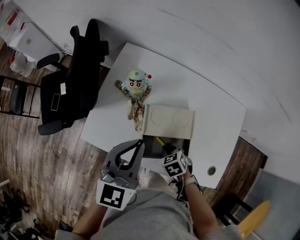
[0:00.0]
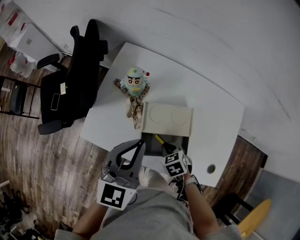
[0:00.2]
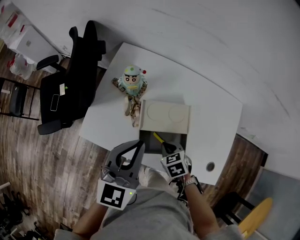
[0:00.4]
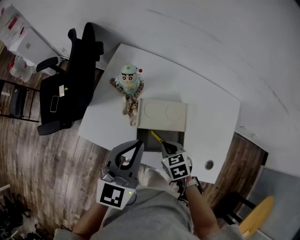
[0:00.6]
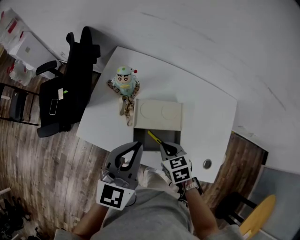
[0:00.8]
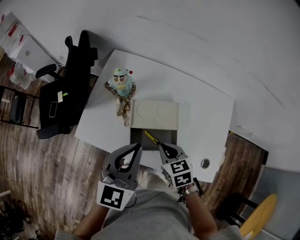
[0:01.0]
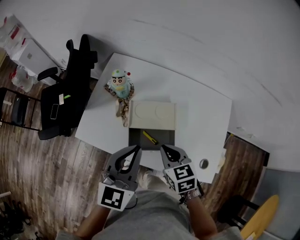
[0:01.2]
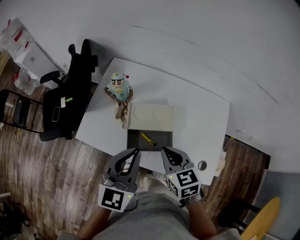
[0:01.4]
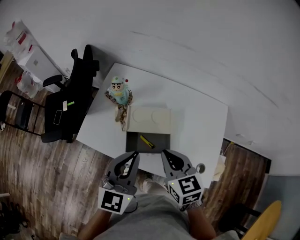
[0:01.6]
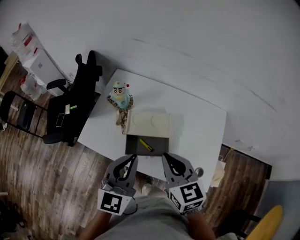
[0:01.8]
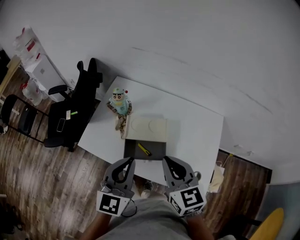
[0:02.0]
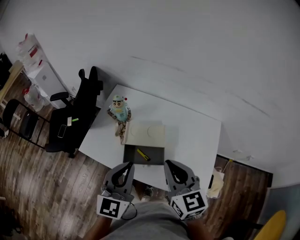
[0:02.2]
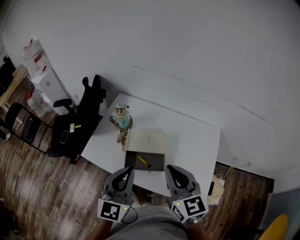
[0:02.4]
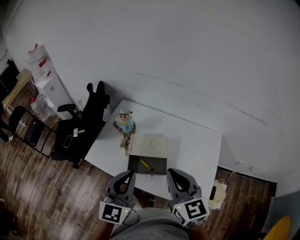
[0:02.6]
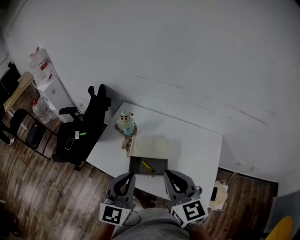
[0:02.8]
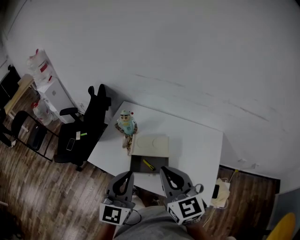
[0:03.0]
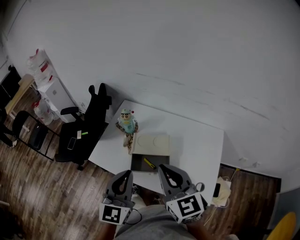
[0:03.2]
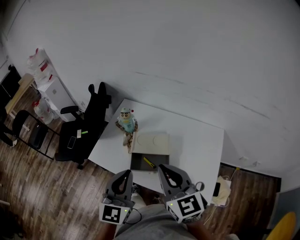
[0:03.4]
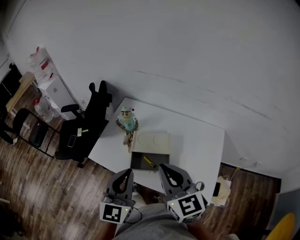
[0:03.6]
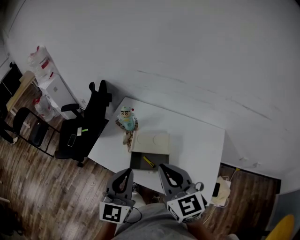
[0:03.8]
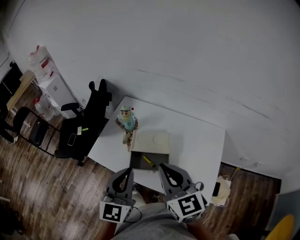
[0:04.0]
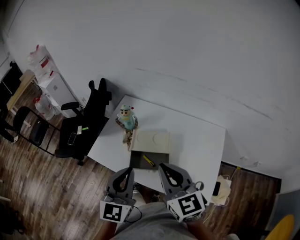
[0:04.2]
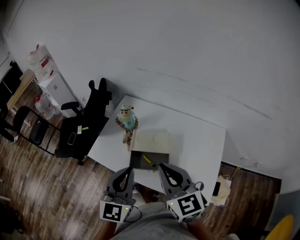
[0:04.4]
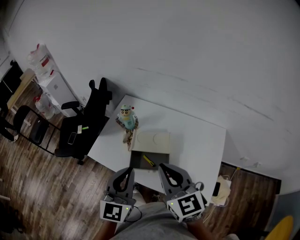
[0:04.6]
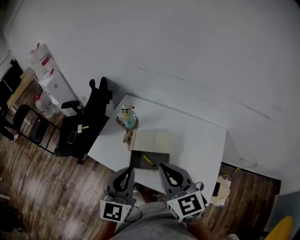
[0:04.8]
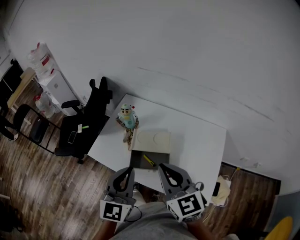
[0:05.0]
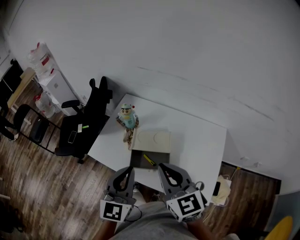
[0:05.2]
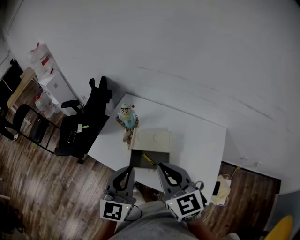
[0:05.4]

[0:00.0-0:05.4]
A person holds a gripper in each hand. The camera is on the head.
0:00.0 to 0:01.4: The left gripper is displaced backward and to the right by roughly 10 cm. Meanwhile the right gripper is displaced upward by approximately 20 cm, and tips its fingers upward by about 30 degrees.
0:01.4 to 0:02.8: The left gripper travels backward and upward by roughly 10 cm; the right gripper shifts approximately 20 cm upward, and swivels some 30 degrees.
0:02.8 to 0:04.0: The grippers make only small movements.
0:04.0 to 0:05.4: Both grippers stay put.

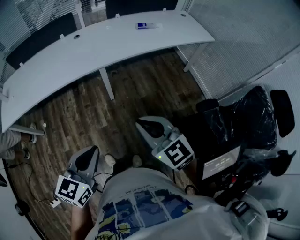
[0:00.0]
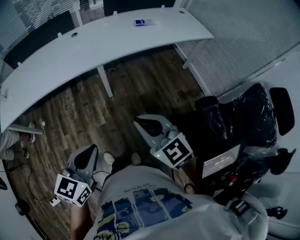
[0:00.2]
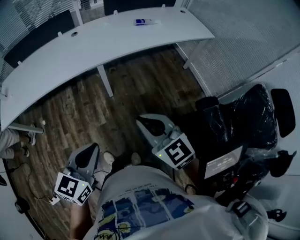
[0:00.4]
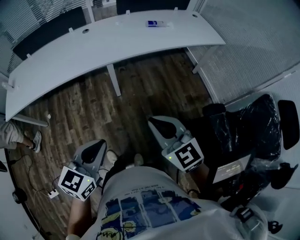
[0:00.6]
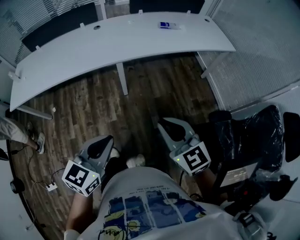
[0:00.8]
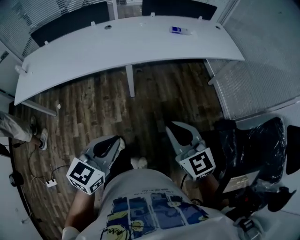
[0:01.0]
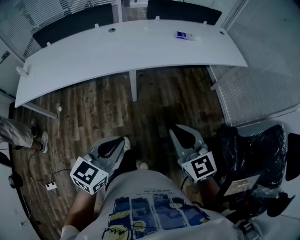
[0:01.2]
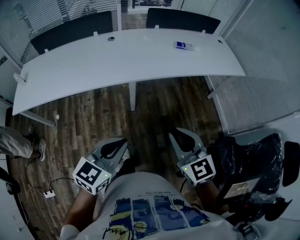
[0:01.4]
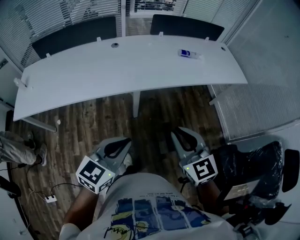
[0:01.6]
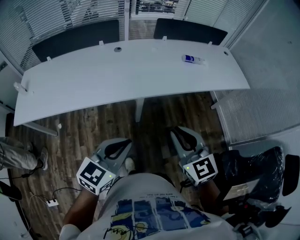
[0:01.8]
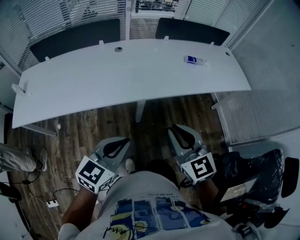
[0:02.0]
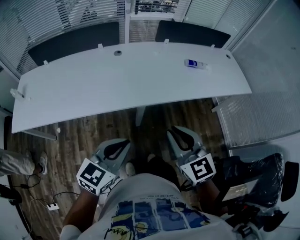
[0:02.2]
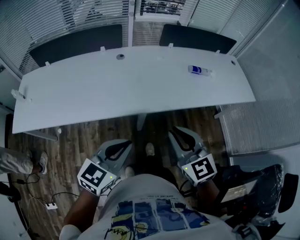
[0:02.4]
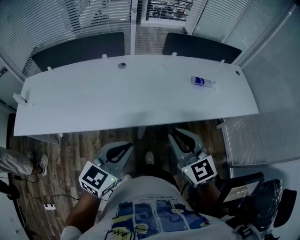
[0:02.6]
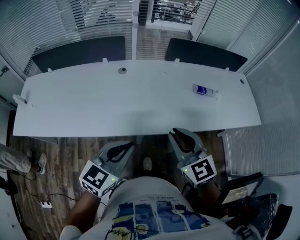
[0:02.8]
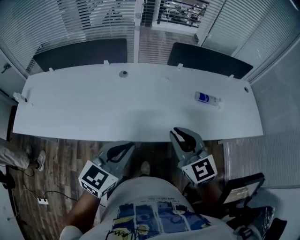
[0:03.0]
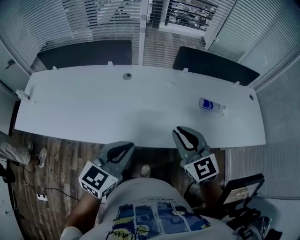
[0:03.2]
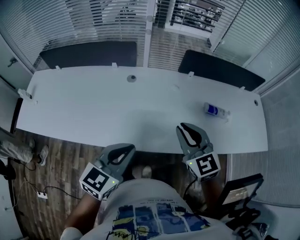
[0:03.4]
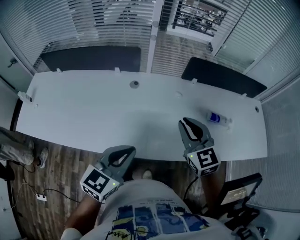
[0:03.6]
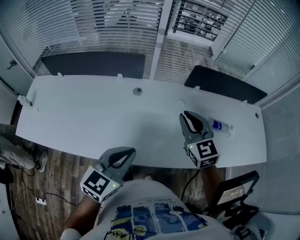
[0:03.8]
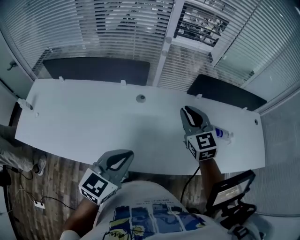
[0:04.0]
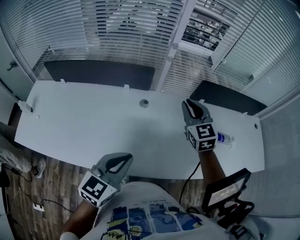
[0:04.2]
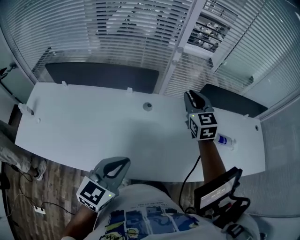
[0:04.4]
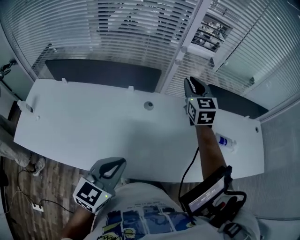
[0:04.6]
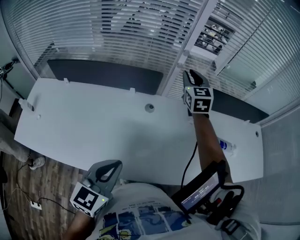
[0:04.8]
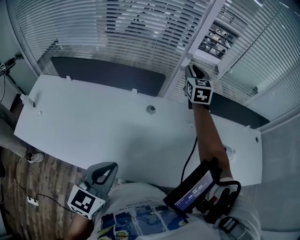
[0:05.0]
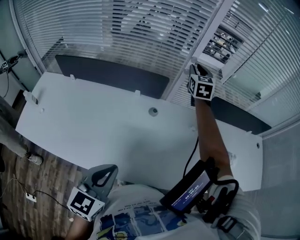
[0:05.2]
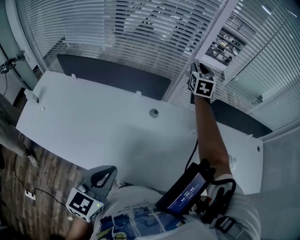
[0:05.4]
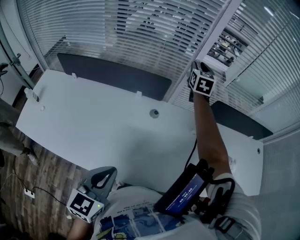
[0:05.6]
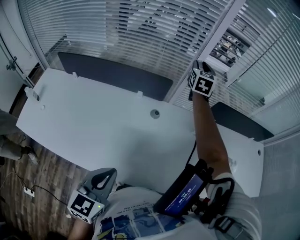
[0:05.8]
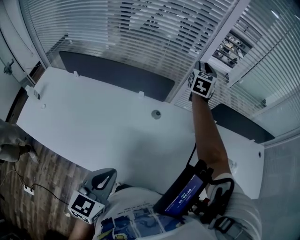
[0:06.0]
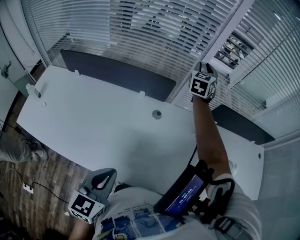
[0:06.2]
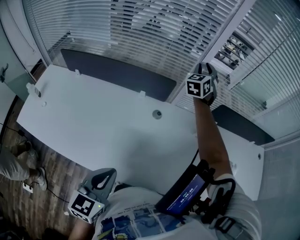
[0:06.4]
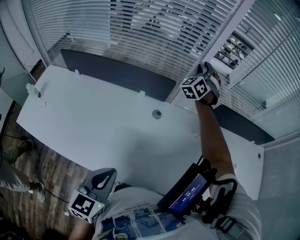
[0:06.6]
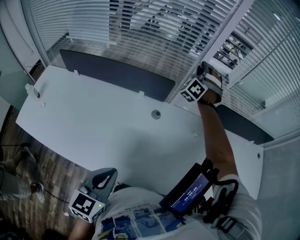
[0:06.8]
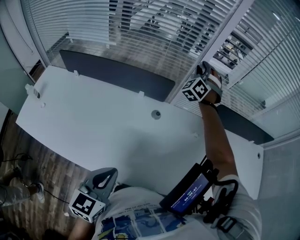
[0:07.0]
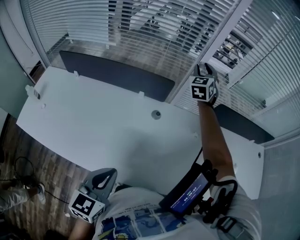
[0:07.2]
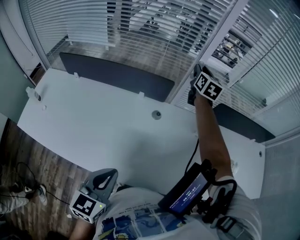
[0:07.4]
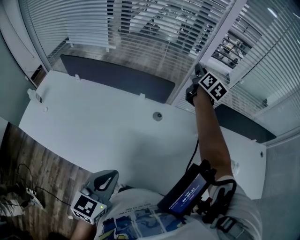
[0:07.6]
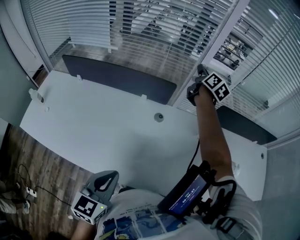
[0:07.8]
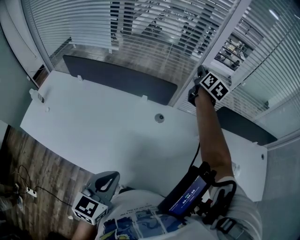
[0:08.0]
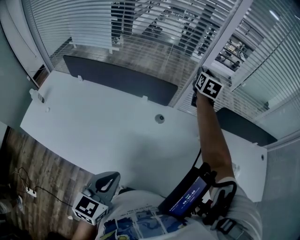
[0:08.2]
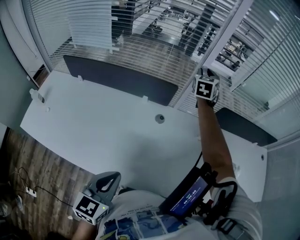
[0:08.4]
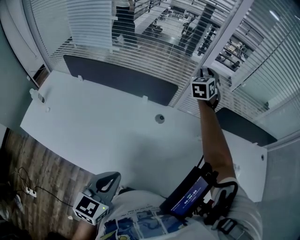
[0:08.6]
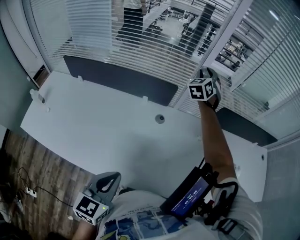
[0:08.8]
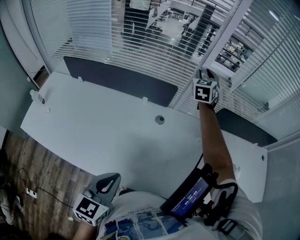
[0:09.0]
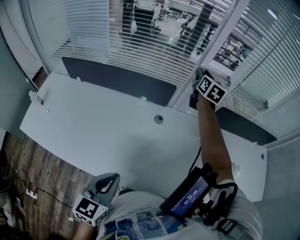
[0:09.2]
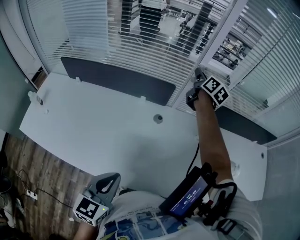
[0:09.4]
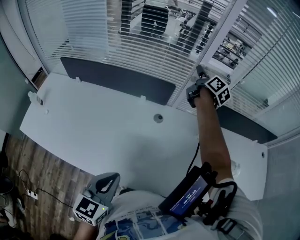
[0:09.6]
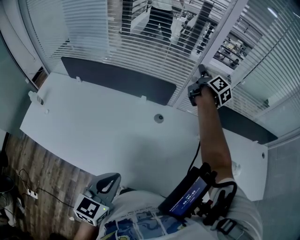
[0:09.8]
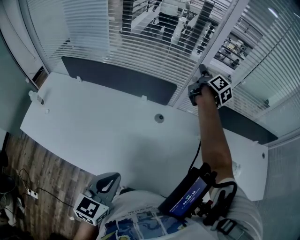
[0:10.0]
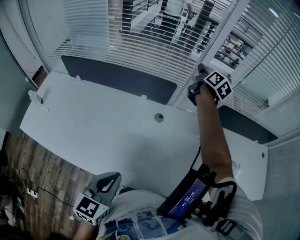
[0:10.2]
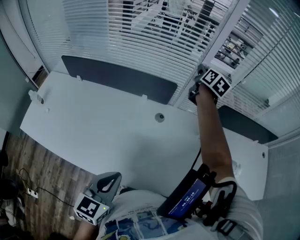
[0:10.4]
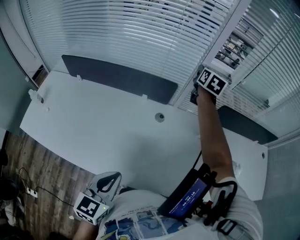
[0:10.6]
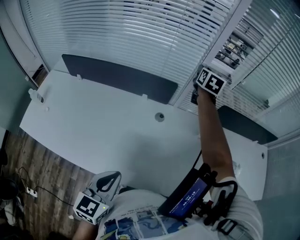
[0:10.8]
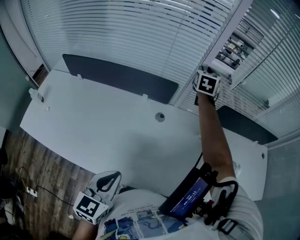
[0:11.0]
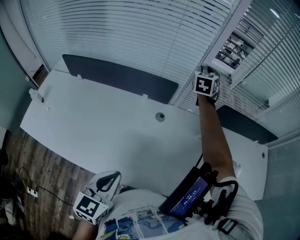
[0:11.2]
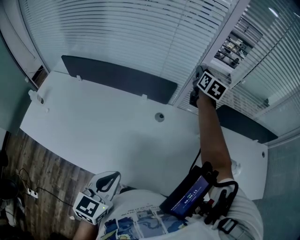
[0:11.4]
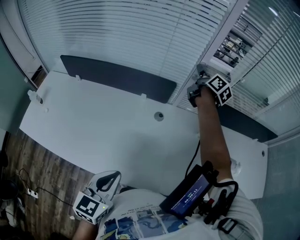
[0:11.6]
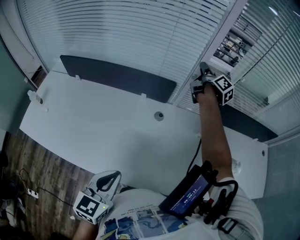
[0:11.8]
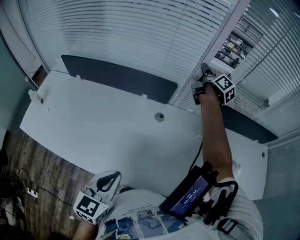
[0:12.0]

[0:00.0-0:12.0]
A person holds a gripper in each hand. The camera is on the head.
0:00.0 to 0:01.6: The grippers both shift forward by roughly 15 cm.
0:01.6 to 0:03.0: Both grippers move forward, some 30 cm.
0:03.0 to 0:04.4: The right gripper moves forward and to the left, some 40 cm, while the left gripper heads to the left and forward, covering some 20 cm.
0:04.4 to 0:06.0: The right gripper moves forward, some 20 cm.
0:06.0 to 0:07.6: The right gripper turns by about 40 degrees.
0:07.6 to 0:09.0: The right gripper rolls counterclockwise, seen from behind, by some 50 degrees.
0:09.0 to 0:10.4: The right gripper rotates around the line of its fingers by some 50 degrees, clockwise from behind.
0:10.4 to 0:12.0: The right gripper turns by some 30 degrees.

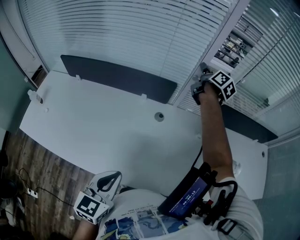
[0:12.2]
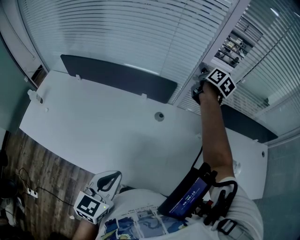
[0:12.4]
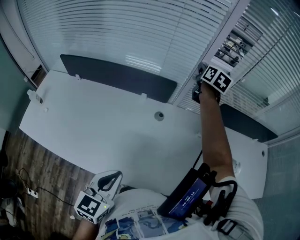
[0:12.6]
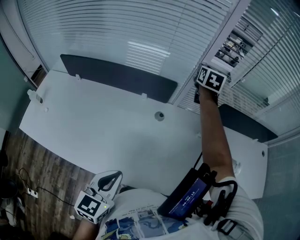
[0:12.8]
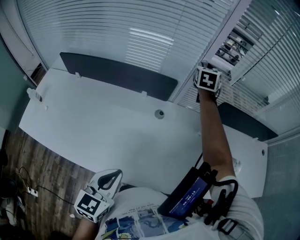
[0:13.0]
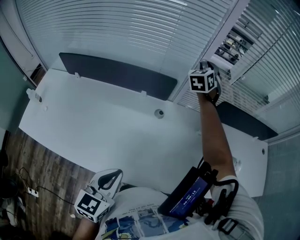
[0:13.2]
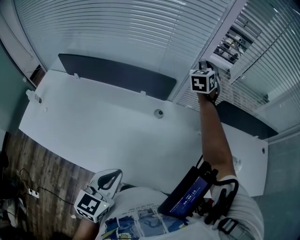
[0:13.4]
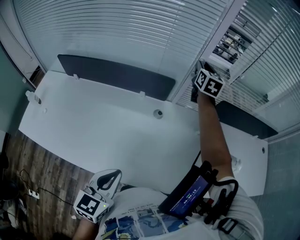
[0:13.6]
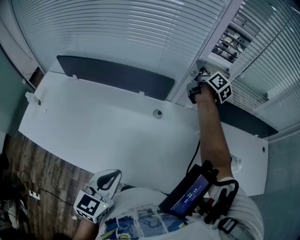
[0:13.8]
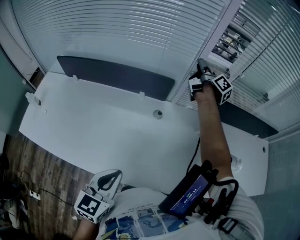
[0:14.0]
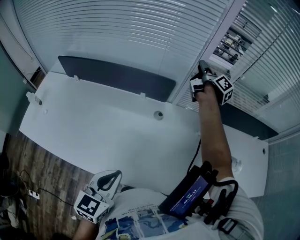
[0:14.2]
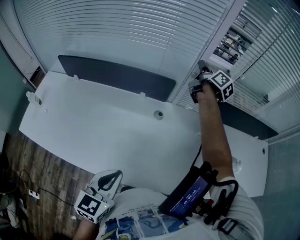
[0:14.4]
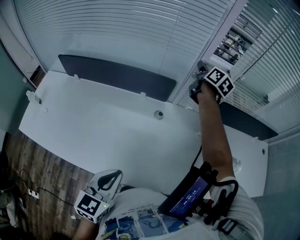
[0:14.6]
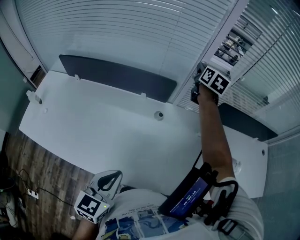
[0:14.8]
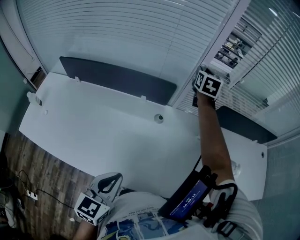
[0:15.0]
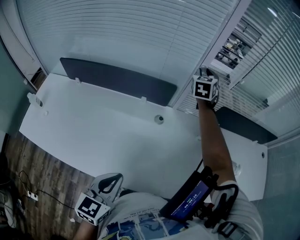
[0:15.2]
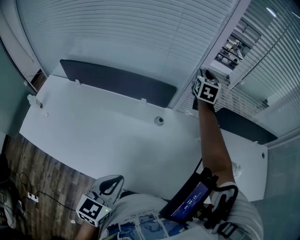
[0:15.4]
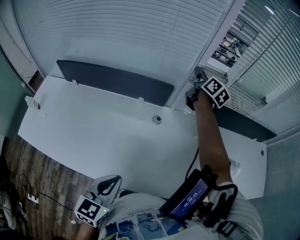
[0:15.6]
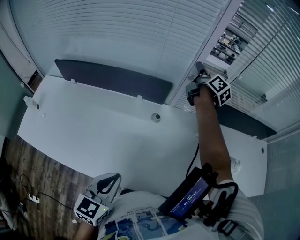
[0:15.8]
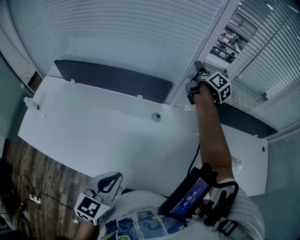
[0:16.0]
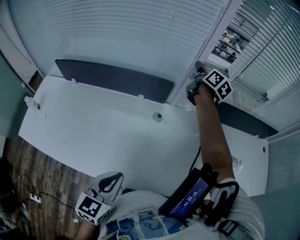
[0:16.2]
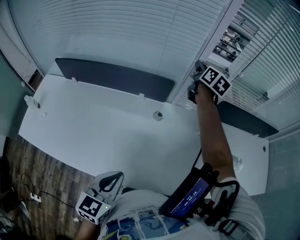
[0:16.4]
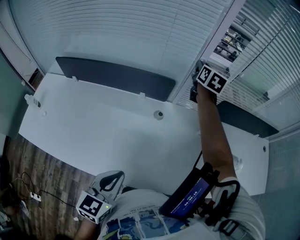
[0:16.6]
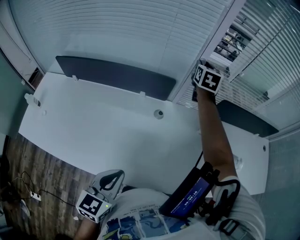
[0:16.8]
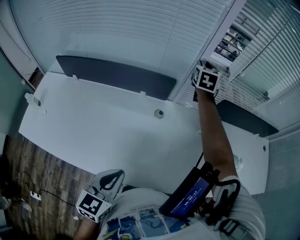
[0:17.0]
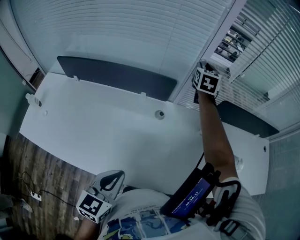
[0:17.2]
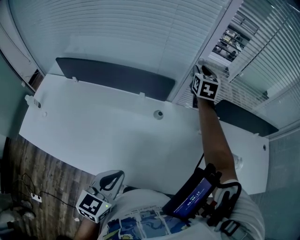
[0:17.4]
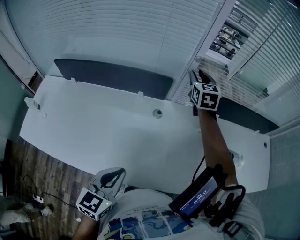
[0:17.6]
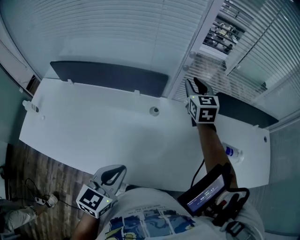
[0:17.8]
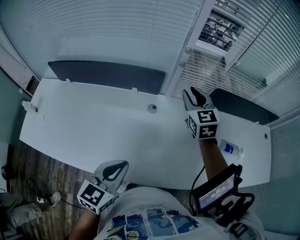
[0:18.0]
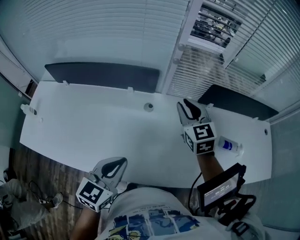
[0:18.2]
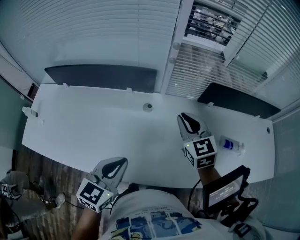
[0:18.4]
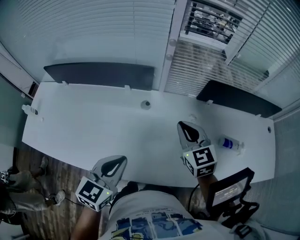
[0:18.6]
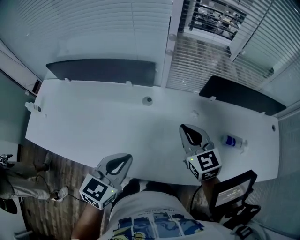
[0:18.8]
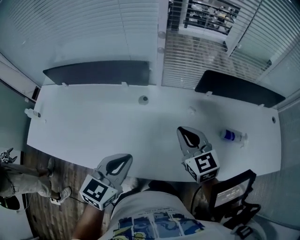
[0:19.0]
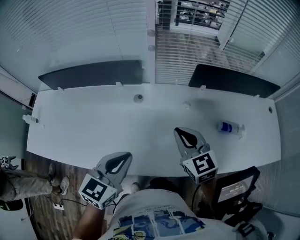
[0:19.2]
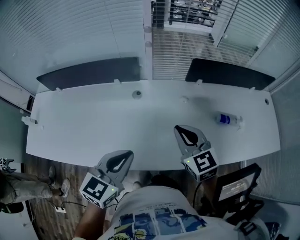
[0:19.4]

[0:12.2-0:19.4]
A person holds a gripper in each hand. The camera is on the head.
0:12.2 to 0:13.6: The right gripper twists about 40 degrees counterclockwise, seen from behind.
0:16.6 to 0:18.0: The right gripper shifts about 15 cm backward, and swivels about 30 degrees.
0:18.0 to 0:19.4: The right gripper travels backward by roughly 25 cm, and closes. Meanwhile the left gripper shifts approximately 10 cm to the right.
